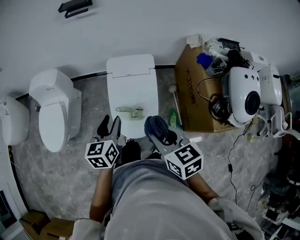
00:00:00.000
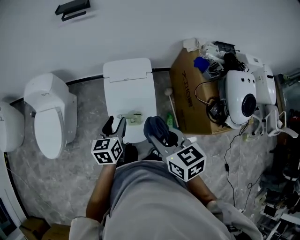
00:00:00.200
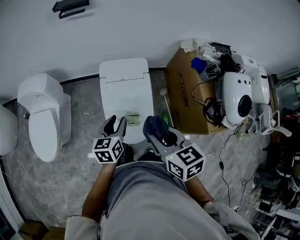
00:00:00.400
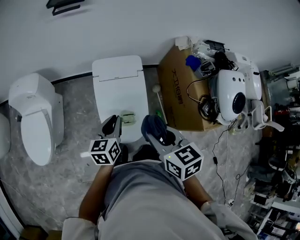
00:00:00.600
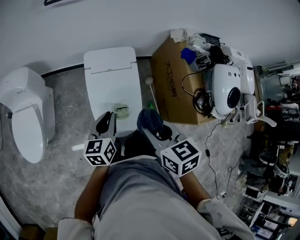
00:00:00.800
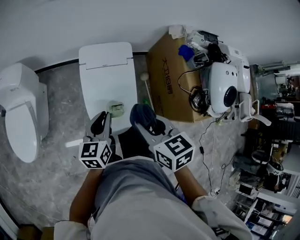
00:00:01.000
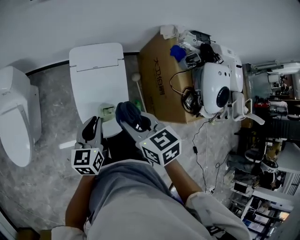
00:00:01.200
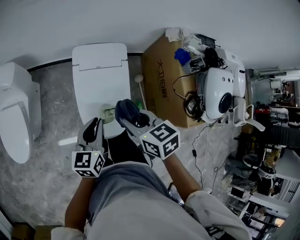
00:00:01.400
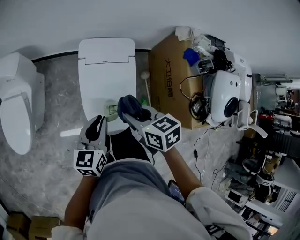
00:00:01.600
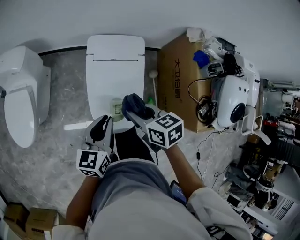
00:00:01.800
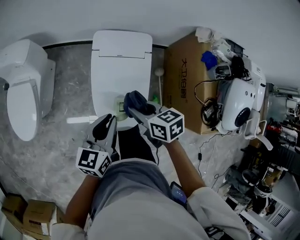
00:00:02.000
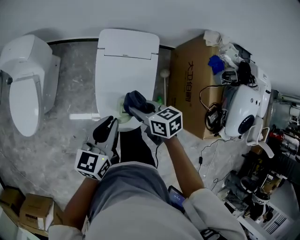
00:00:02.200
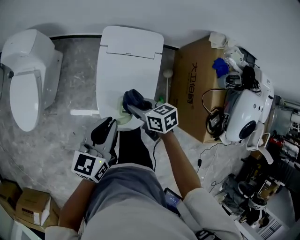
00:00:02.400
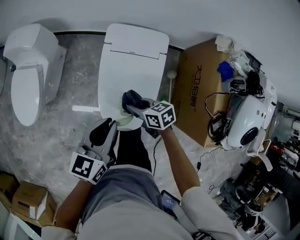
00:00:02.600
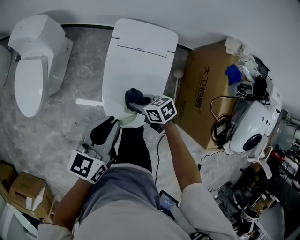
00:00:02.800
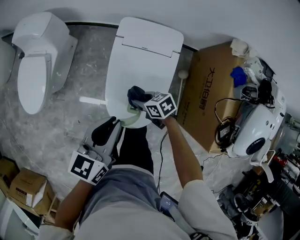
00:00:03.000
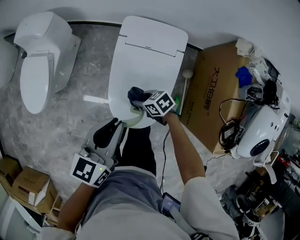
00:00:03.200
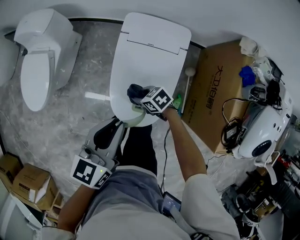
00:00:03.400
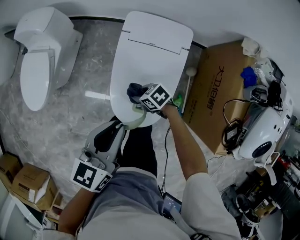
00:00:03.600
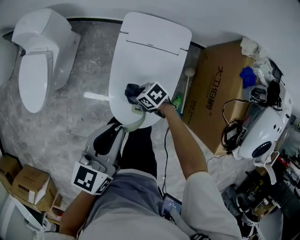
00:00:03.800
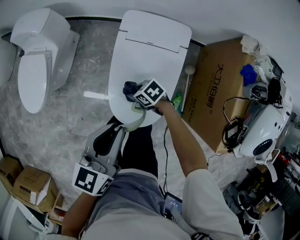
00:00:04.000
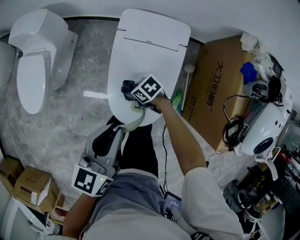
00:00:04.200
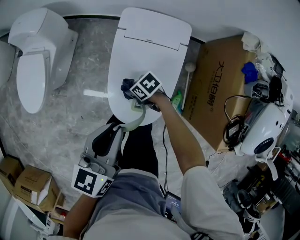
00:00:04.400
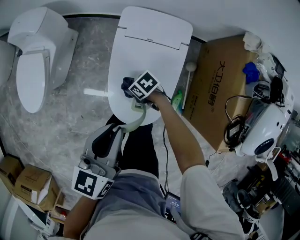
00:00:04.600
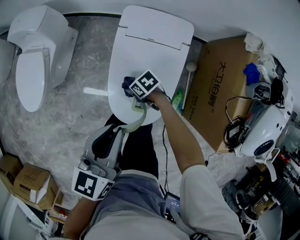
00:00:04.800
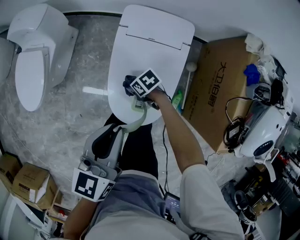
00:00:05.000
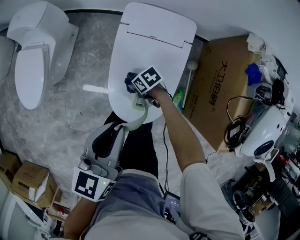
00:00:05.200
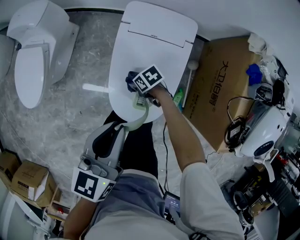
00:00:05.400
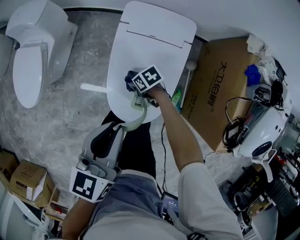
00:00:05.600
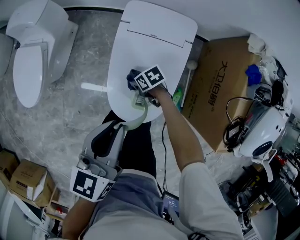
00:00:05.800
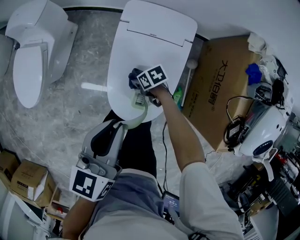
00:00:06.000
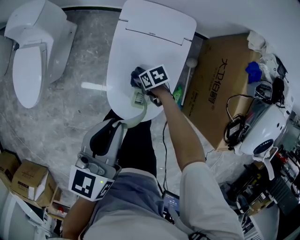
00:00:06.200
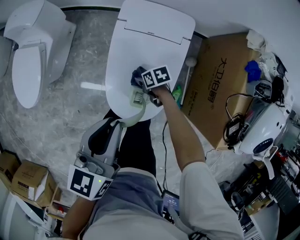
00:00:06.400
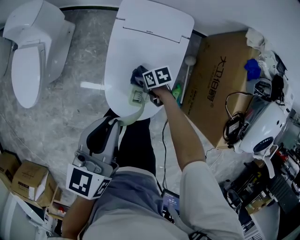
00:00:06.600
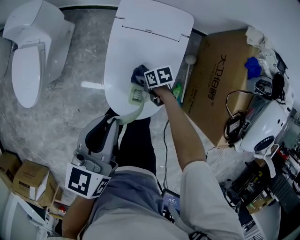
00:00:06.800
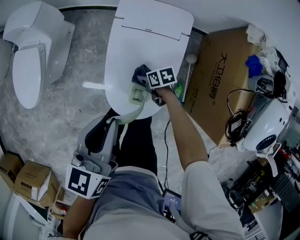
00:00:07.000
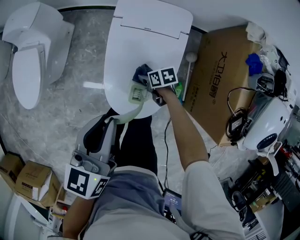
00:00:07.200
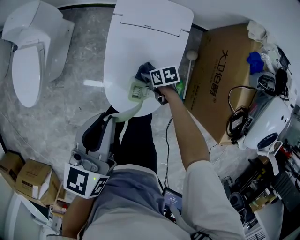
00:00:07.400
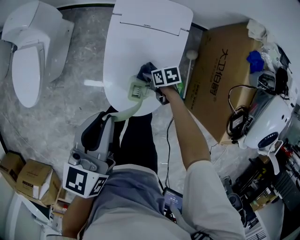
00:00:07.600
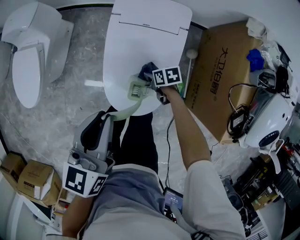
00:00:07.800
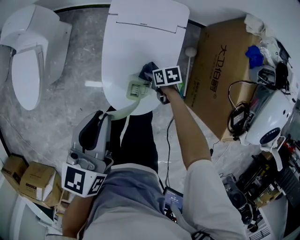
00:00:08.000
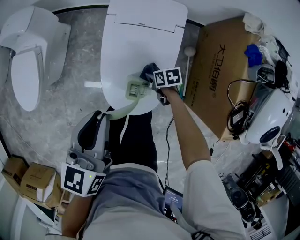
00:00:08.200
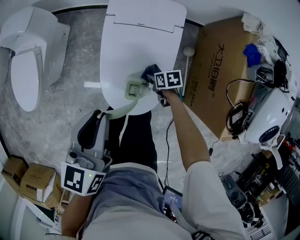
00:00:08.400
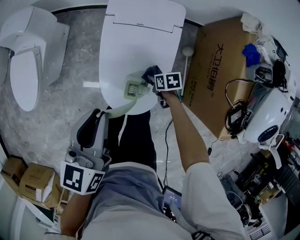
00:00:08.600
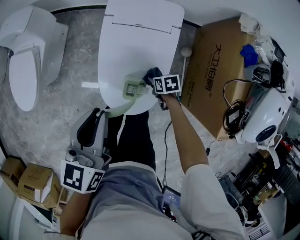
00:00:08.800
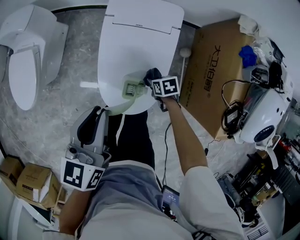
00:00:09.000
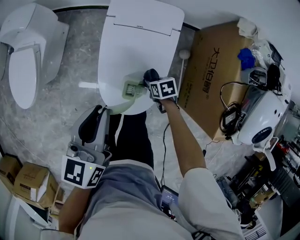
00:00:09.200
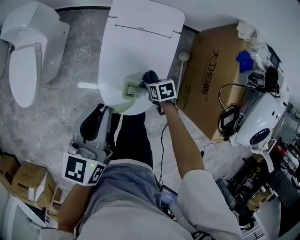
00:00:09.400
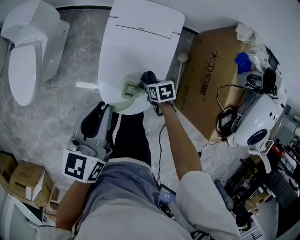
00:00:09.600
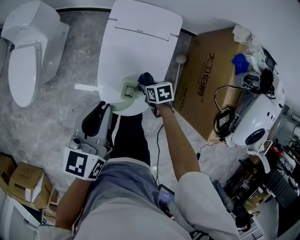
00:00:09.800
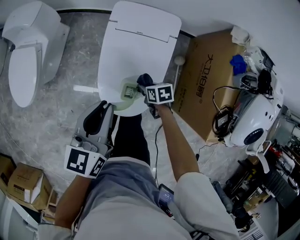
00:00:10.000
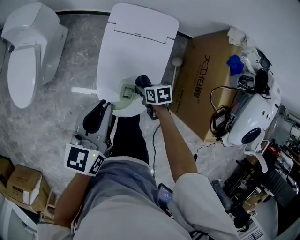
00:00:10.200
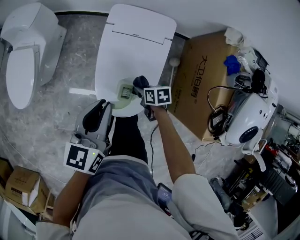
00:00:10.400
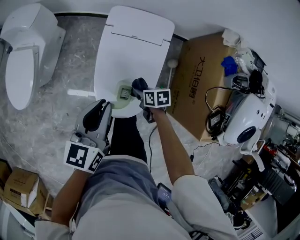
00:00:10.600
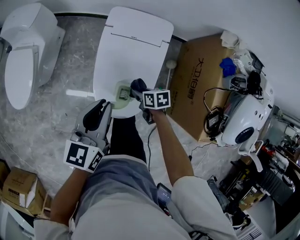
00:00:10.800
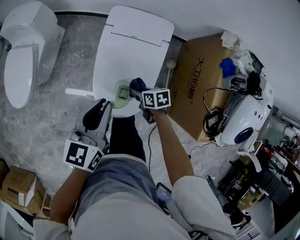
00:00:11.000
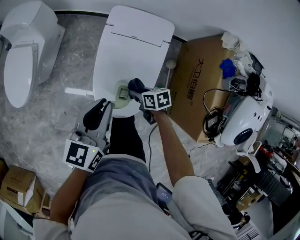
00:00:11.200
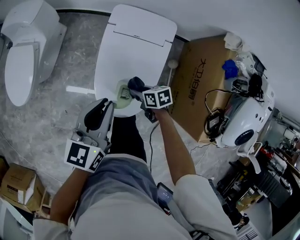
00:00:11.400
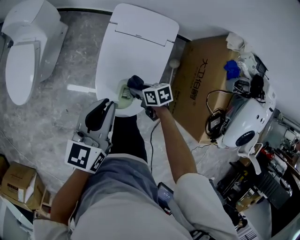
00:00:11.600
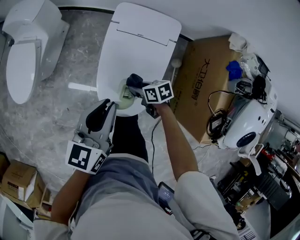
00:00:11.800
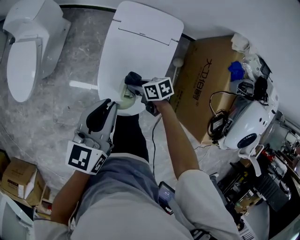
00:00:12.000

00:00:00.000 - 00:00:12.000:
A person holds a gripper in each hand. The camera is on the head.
00:00:00.000 - 00:00:01.600: The left gripper is displaced downward and forward by some 10 cm; the right gripper heads forward and downward, covering some 20 cm.
00:00:01.600 - 00:00:03.000: The right gripper travels downward by about 25 cm, and turns by some 30 degrees.
00:00:03.000 - 00:00:04.400: The right gripper goes approximately 10 cm downward.
00:00:04.400 - 00:00:06.000: The right gripper is displaced downward by some 5 cm.
00:00:06.000 - 00:00:07.600: The right gripper shifts about 5 cm to the right.
00:00:07.600 - 00:00:09.000: The right gripper is displaced backward by roughly 5 cm.
00:00:09.000 - 00:00:10.400: The right gripper heads upward, covering approximately 5 cm.
00:00:10.400 - 00:00:12.000: The right gripper travels to the left by roughly 5 cm, and rotates roughly 20 degrees.

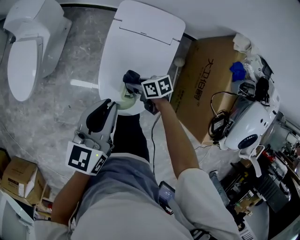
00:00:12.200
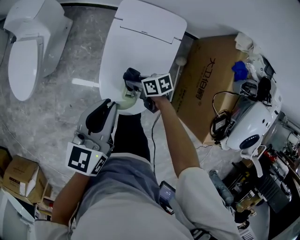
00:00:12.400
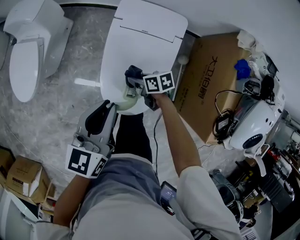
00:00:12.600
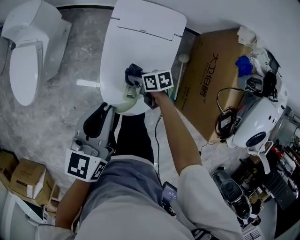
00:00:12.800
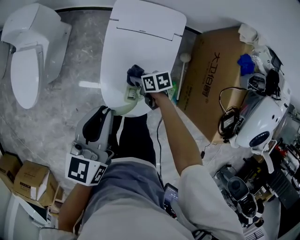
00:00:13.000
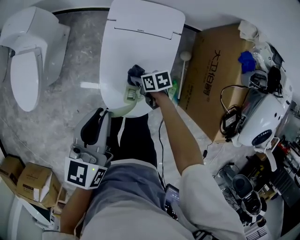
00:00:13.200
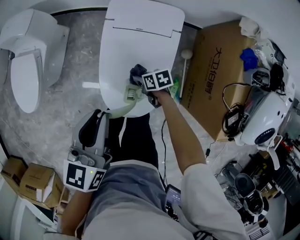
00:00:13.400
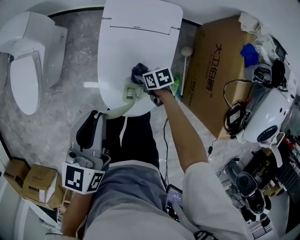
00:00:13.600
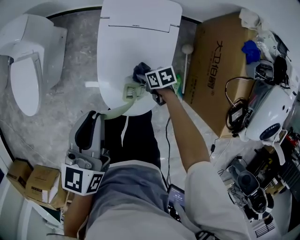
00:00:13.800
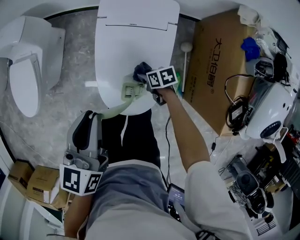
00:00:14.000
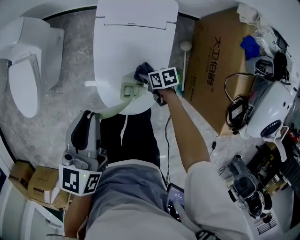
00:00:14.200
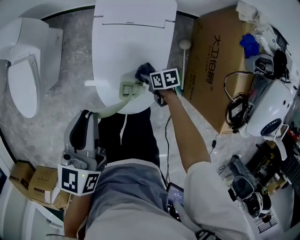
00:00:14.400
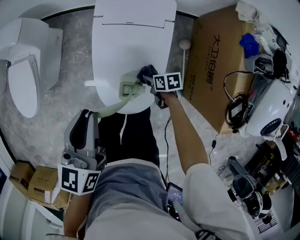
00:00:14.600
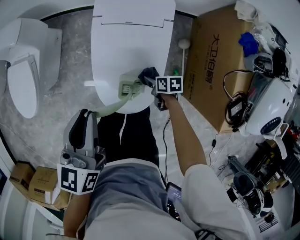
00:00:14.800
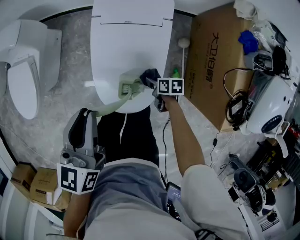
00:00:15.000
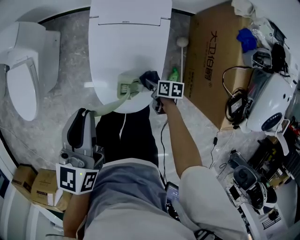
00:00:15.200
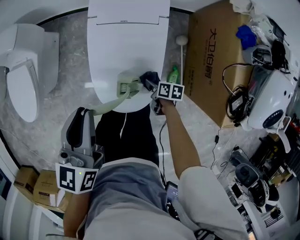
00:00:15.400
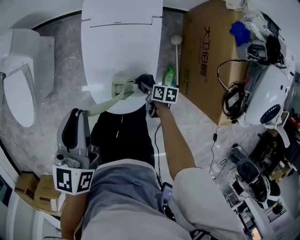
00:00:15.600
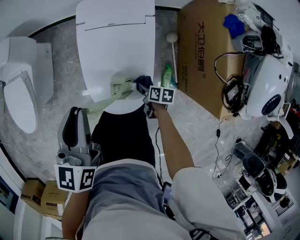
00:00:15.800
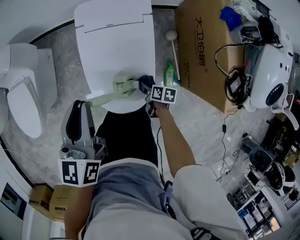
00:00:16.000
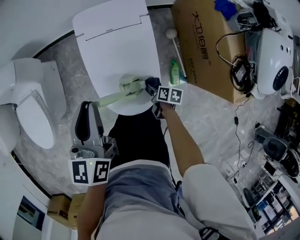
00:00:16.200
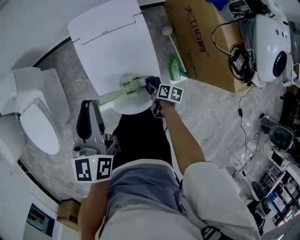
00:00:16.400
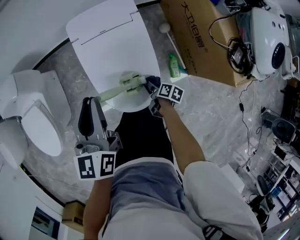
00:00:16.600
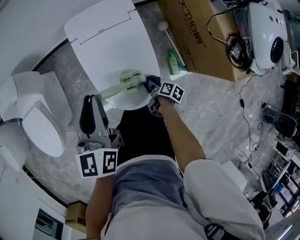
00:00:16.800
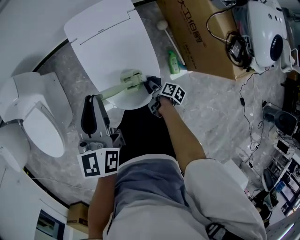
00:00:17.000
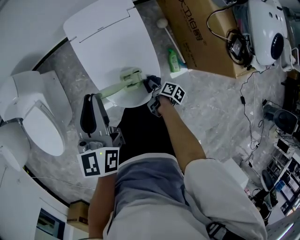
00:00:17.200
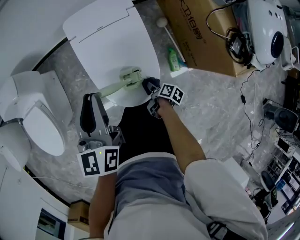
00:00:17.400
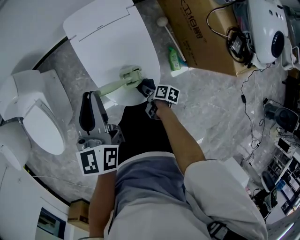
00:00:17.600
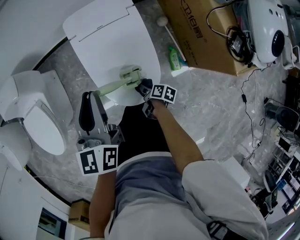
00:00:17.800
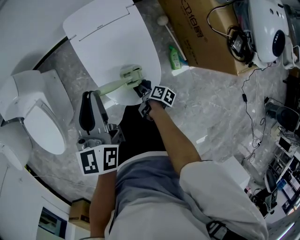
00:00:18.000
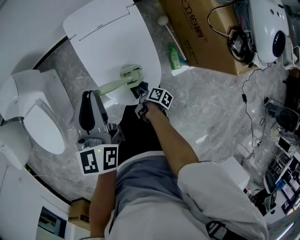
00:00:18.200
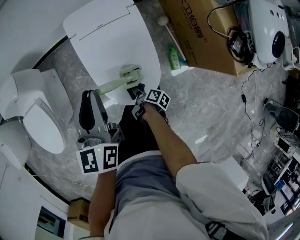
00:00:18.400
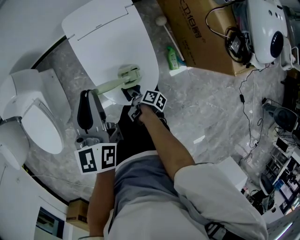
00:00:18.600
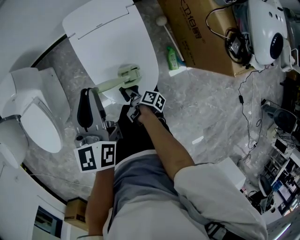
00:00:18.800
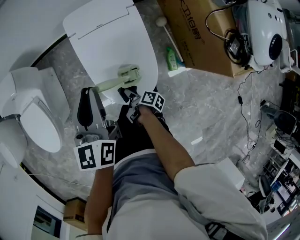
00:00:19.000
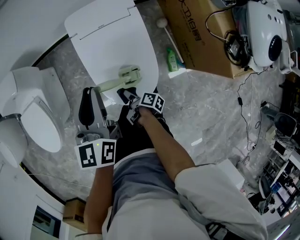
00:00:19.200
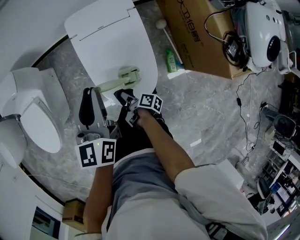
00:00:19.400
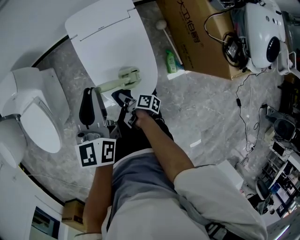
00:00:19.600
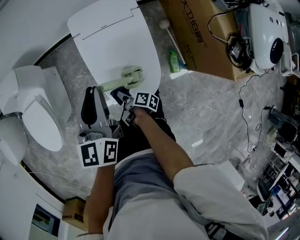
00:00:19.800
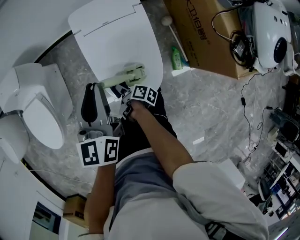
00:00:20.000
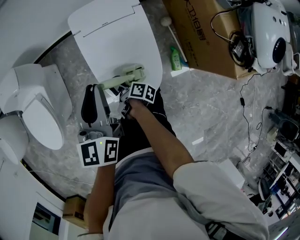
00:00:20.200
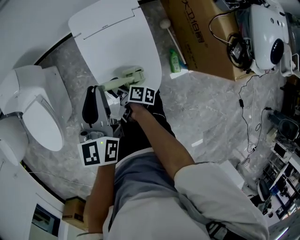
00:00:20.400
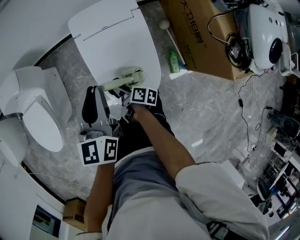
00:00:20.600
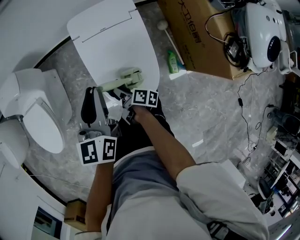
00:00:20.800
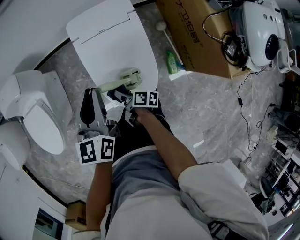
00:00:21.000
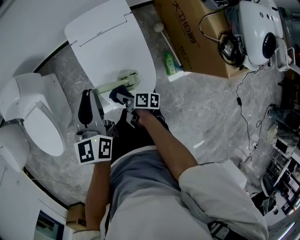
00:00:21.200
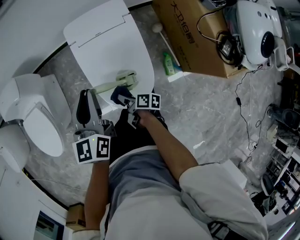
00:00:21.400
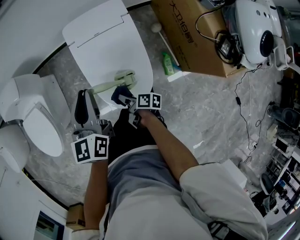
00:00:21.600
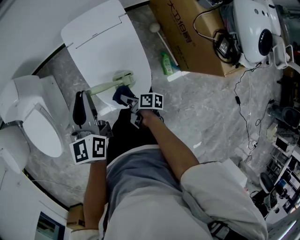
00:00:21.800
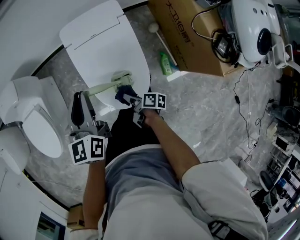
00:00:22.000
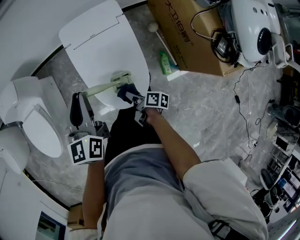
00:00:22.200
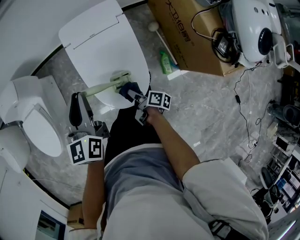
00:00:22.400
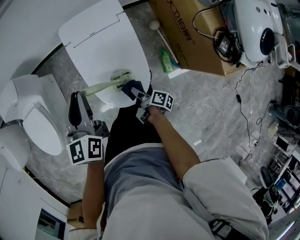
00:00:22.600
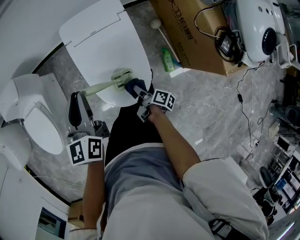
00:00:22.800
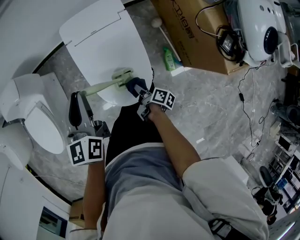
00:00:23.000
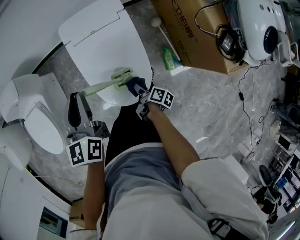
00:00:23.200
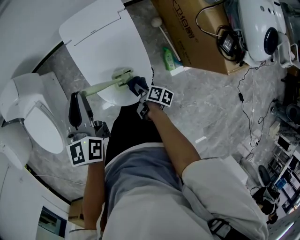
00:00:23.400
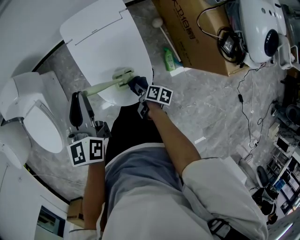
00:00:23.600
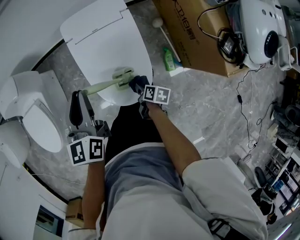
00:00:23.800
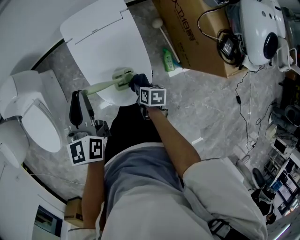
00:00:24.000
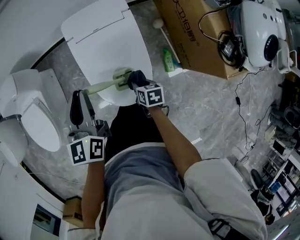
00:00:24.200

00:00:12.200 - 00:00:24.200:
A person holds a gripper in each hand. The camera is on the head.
00:00:12.200 - 00:00:13.800: The right gripper moves downward and to the right, about 10 cm.
00:00:13.800 - 00:00:15.200: The right gripper heads backward, covering about 10 cm, and changes its angle by roughly 30 degrees.
00:00:15.200 - 00:00:16.600: The right gripper shifts roughly 10 cm backward, and changes its angle by some 40 degrees.
00:00:16.600 - 00:00:18.200: The right gripper moves to the left, some 10 cm.
00:00:18.200 - 00:00:19.800: The right gripper goes about 10 cm to the left and upward.
00:00:19.800 - 00:00:21.200: The right gripper shifts by approximately 5 cm.
00:00:21.200 - 00:00:22.600: The right gripper is displaced to the right by some 10 cm.
00:00:22.600 - 00:00:24.200: The right gripper rolls counterclockwise, seen from behind, by approximately 50 degrees.
